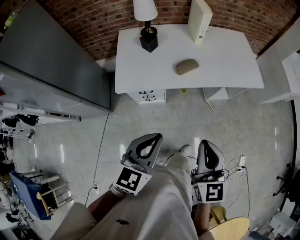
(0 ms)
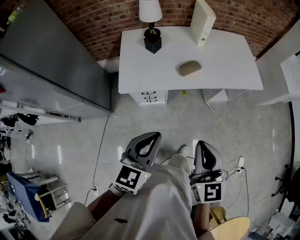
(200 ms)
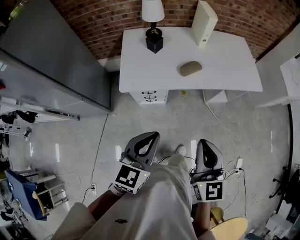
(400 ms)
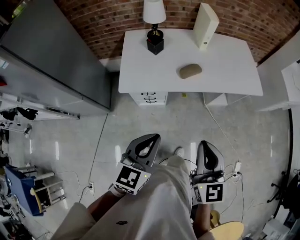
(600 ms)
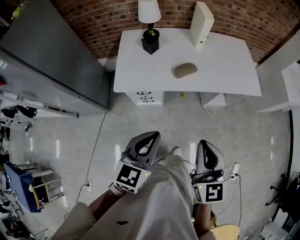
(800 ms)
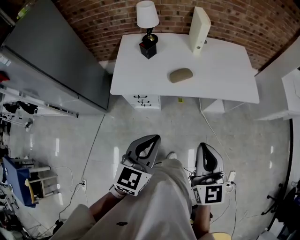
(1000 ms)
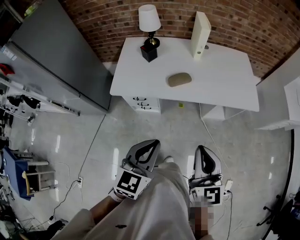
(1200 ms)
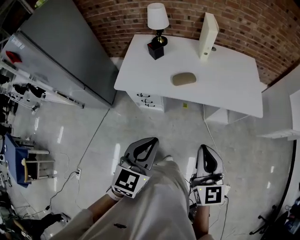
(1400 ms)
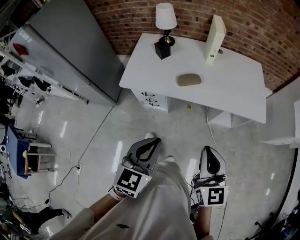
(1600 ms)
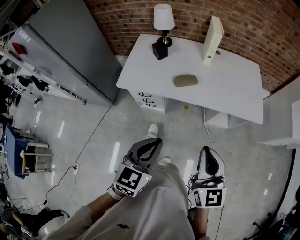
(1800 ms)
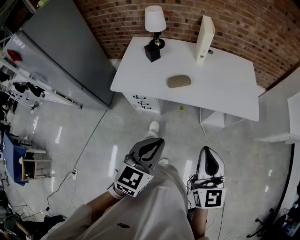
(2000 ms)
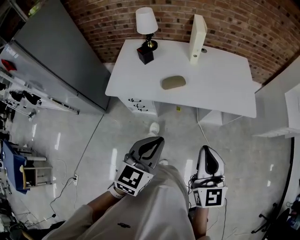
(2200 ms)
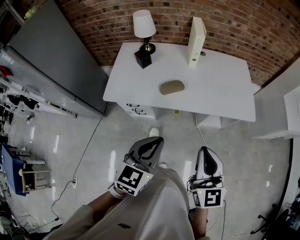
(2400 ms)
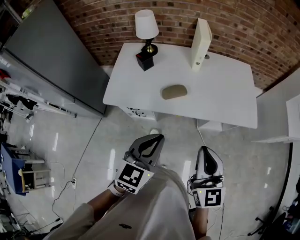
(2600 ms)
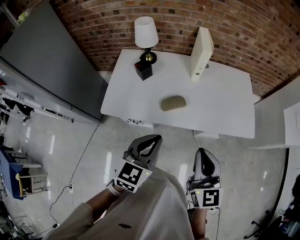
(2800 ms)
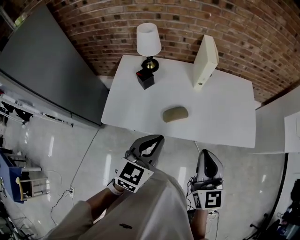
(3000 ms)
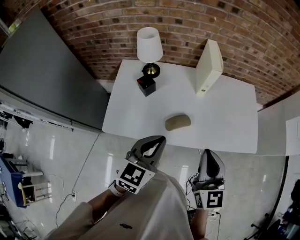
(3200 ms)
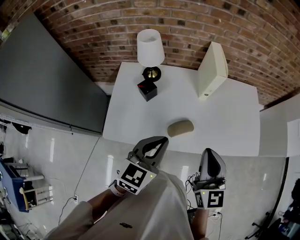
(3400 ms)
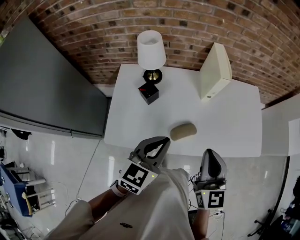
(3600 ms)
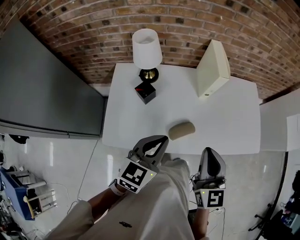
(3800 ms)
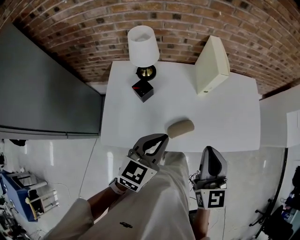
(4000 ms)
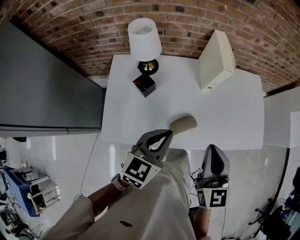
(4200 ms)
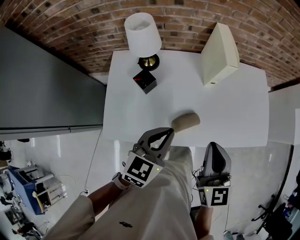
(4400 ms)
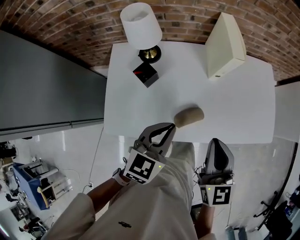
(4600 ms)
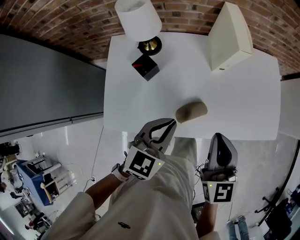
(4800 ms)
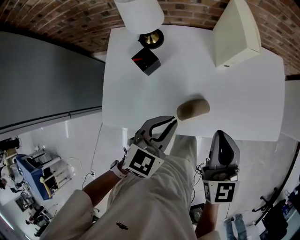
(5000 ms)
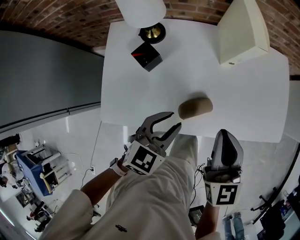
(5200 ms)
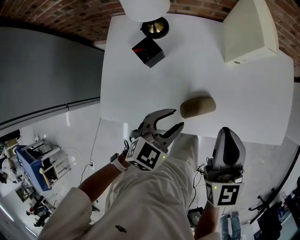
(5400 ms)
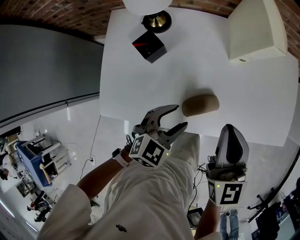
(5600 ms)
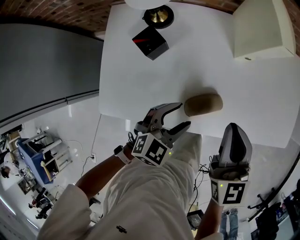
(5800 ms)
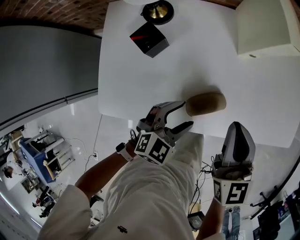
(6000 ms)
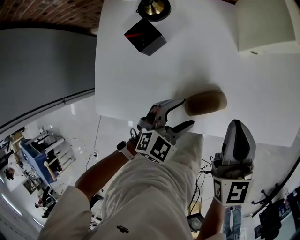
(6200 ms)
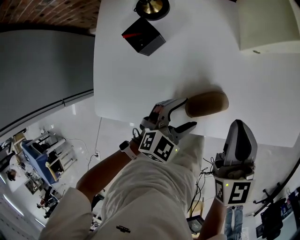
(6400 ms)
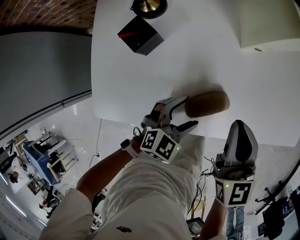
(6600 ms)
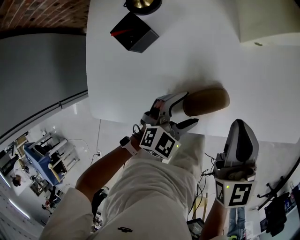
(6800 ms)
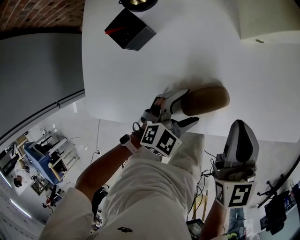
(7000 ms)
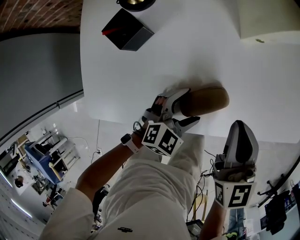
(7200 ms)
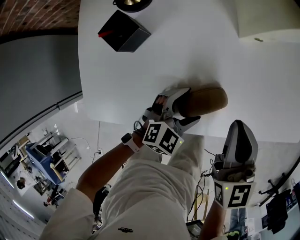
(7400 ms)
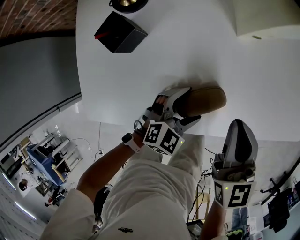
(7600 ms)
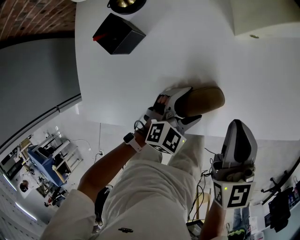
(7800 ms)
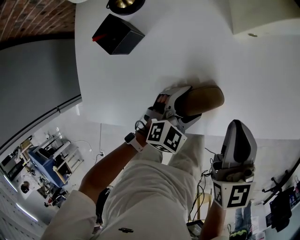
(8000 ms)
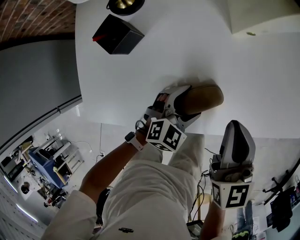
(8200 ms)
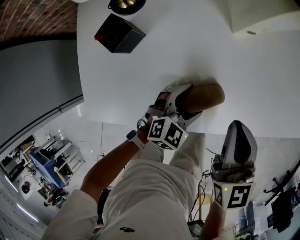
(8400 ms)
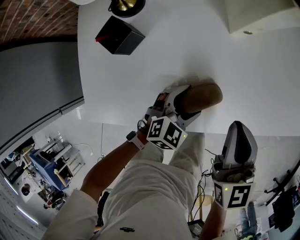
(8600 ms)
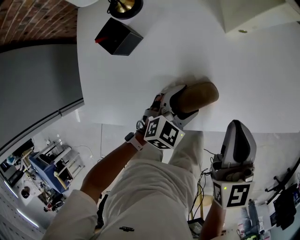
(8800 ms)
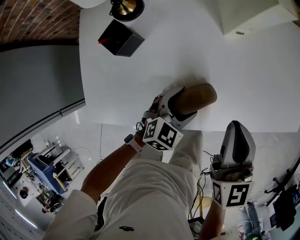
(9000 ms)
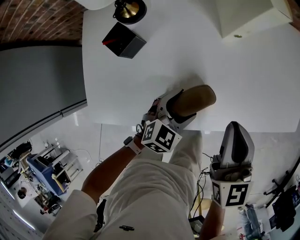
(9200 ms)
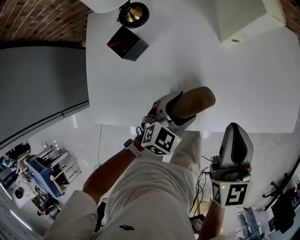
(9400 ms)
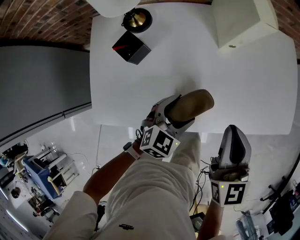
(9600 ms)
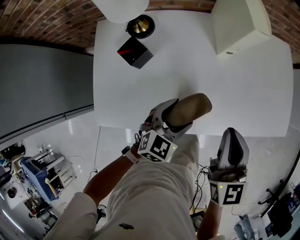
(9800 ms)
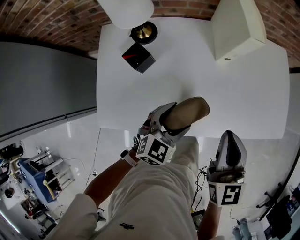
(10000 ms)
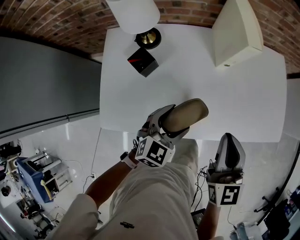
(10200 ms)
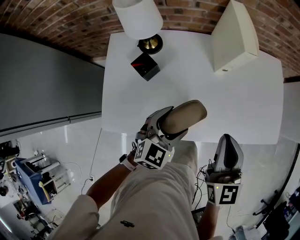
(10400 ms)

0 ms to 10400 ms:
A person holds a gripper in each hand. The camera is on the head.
0 ms to 1400 ms: The grippers both shift to the right by about 15 cm.
1400 ms to 3000 ms: Both grippers travel together forward, about 25 cm.
3000 ms to 4400 ms: The grippers both shift forward and to the left by roughly 15 cm.
4400 ms to 6000 ms: The right gripper goes some 15 cm downward and forward. Meanwhile the left gripper travels downward by approximately 20 cm, changes its angle by approximately 30 degrees, and opens up.
6000 ms to 7400 ms: Both grippers move downward, roughly 10 cm.
7400 ms to 9000 ms: There are only small adjustments of the grippers.
9000 ms to 10400 ms: The left gripper goes approximately 20 cm upward, while the right gripper moves upward, roughly 10 cm.

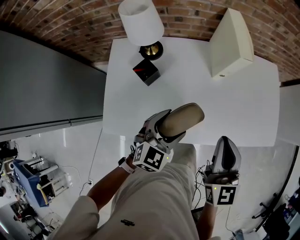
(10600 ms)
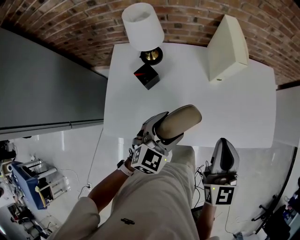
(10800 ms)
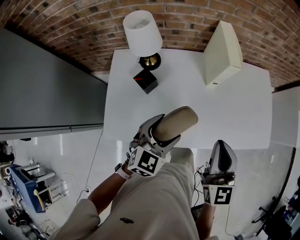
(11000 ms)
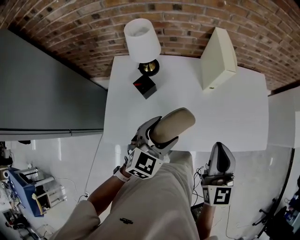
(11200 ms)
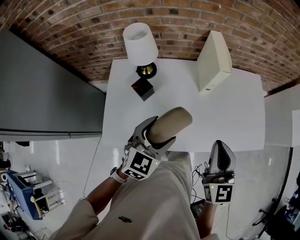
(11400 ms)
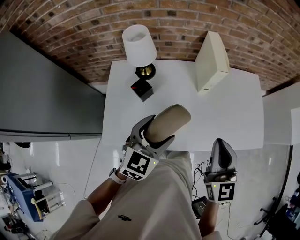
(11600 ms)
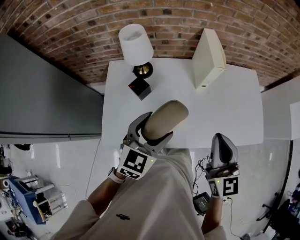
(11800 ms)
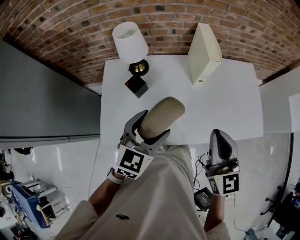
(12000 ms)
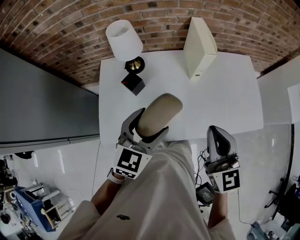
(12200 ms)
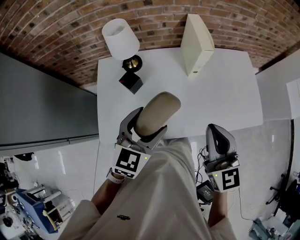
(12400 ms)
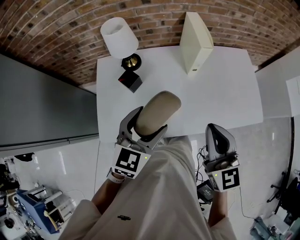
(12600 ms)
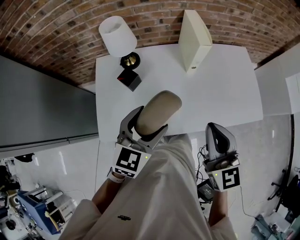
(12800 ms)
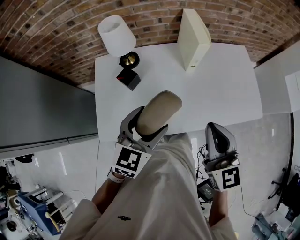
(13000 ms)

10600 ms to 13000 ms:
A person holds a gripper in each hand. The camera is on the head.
10600 ms to 11800 ms: The right gripper is displaced upward by some 5 cm. The left gripper shifts approximately 15 cm upward.
11800 ms to 13000 ms: There are only small adjustments of the grippers.

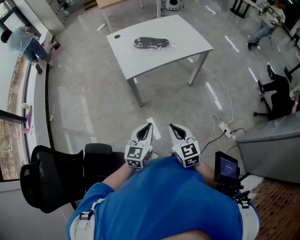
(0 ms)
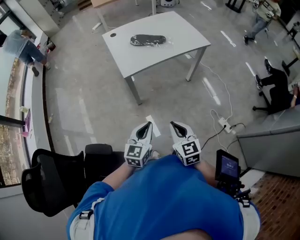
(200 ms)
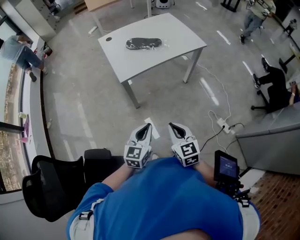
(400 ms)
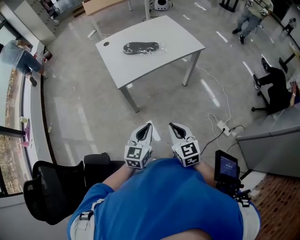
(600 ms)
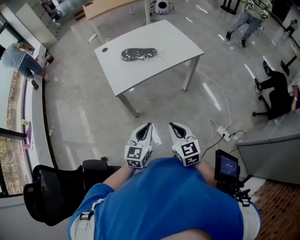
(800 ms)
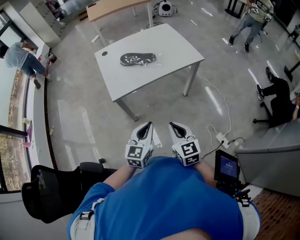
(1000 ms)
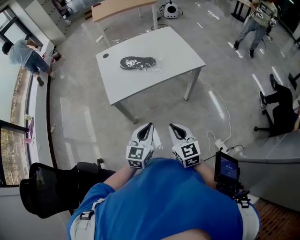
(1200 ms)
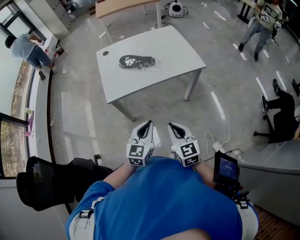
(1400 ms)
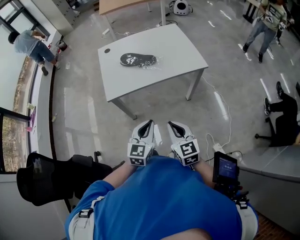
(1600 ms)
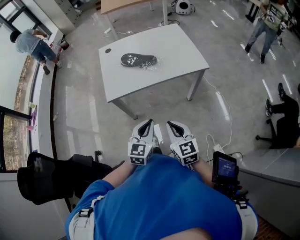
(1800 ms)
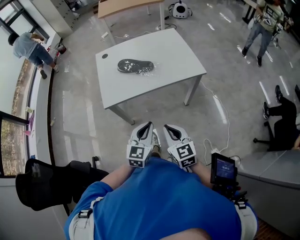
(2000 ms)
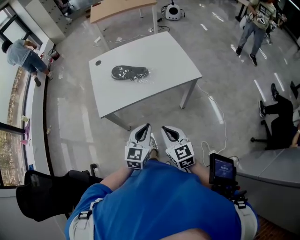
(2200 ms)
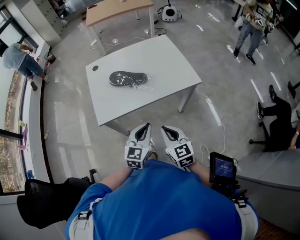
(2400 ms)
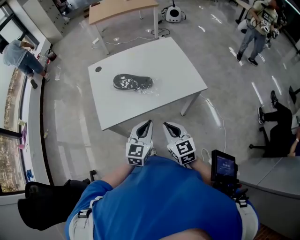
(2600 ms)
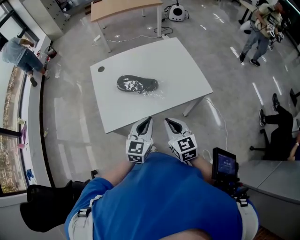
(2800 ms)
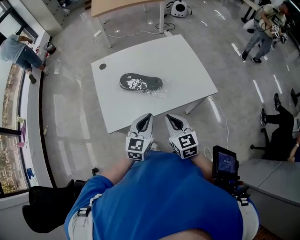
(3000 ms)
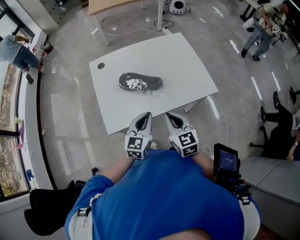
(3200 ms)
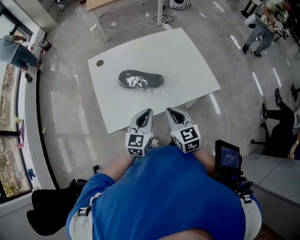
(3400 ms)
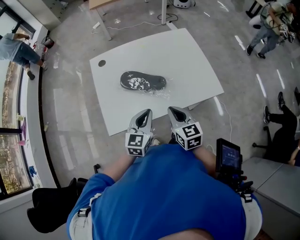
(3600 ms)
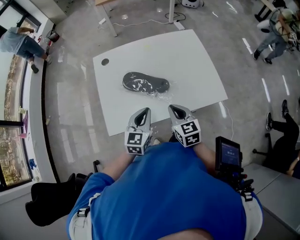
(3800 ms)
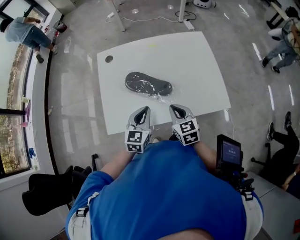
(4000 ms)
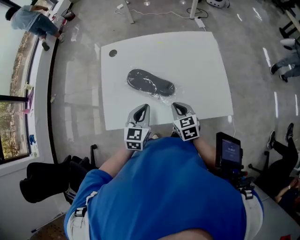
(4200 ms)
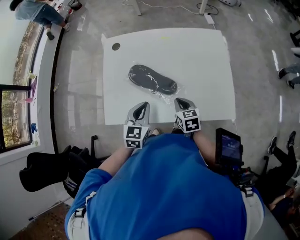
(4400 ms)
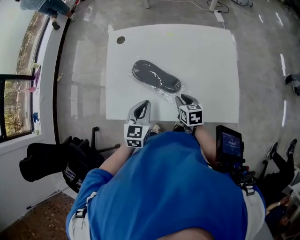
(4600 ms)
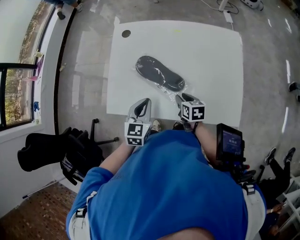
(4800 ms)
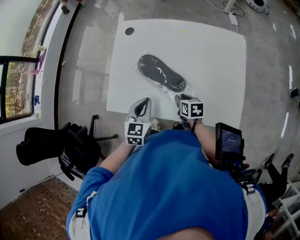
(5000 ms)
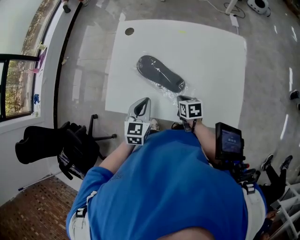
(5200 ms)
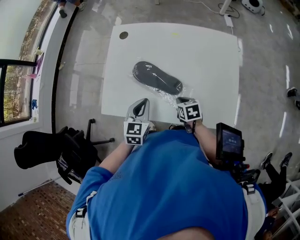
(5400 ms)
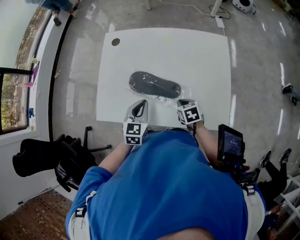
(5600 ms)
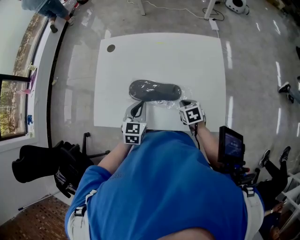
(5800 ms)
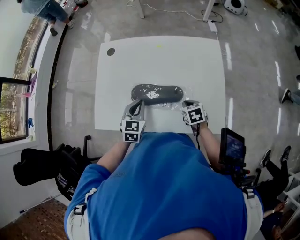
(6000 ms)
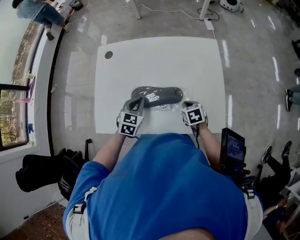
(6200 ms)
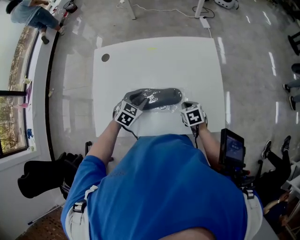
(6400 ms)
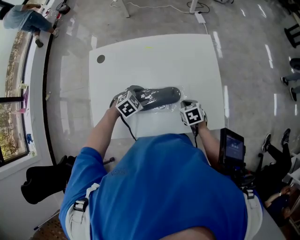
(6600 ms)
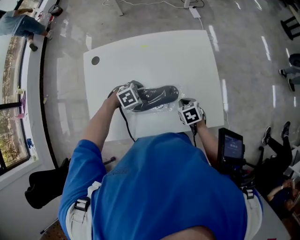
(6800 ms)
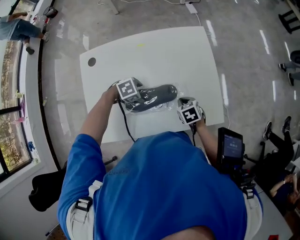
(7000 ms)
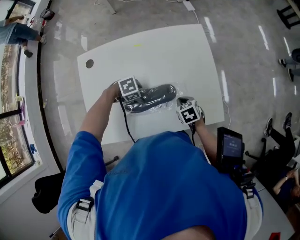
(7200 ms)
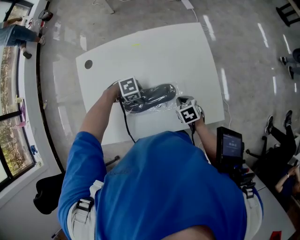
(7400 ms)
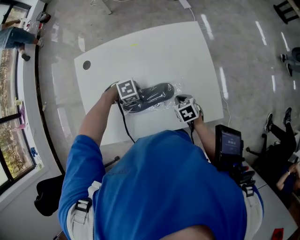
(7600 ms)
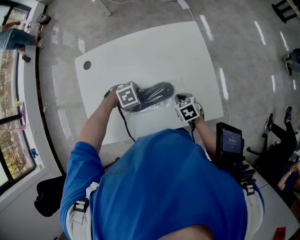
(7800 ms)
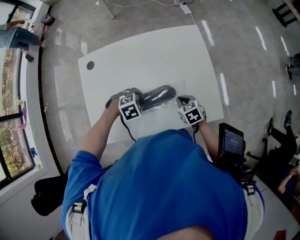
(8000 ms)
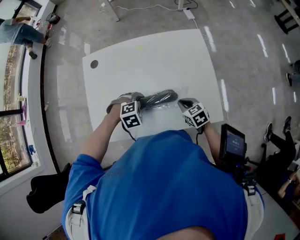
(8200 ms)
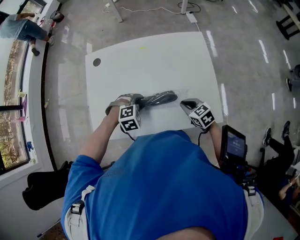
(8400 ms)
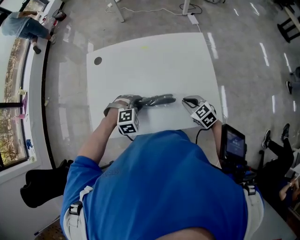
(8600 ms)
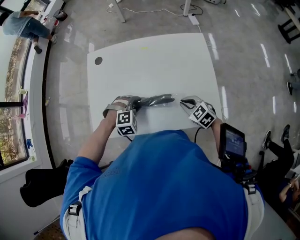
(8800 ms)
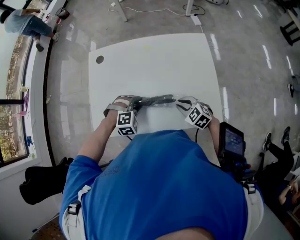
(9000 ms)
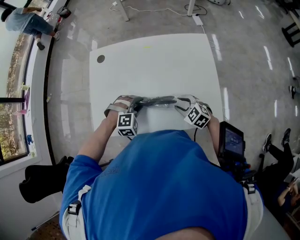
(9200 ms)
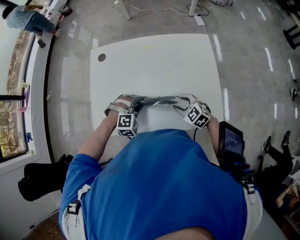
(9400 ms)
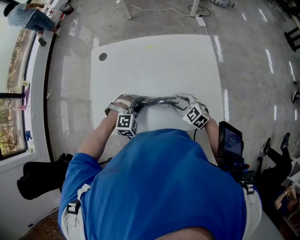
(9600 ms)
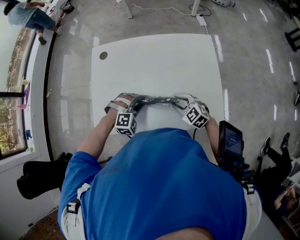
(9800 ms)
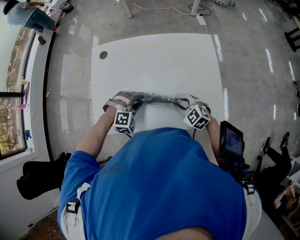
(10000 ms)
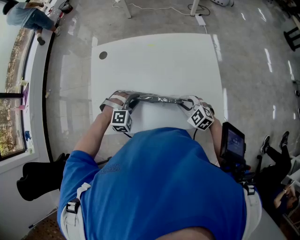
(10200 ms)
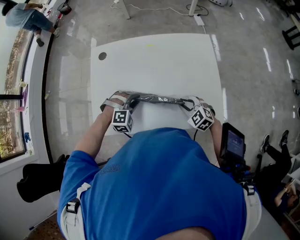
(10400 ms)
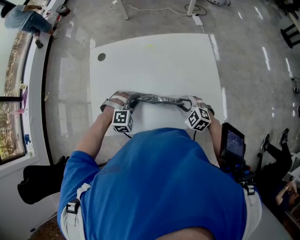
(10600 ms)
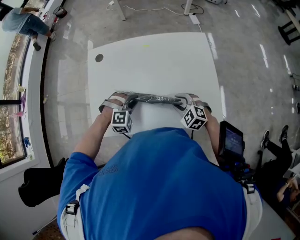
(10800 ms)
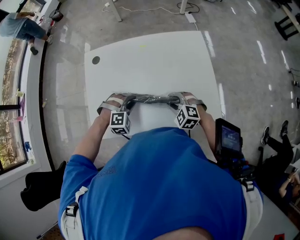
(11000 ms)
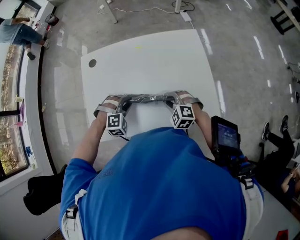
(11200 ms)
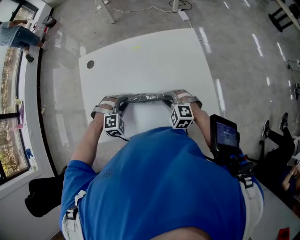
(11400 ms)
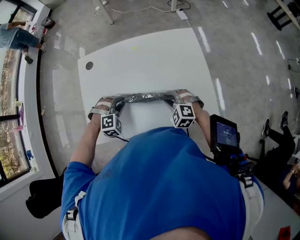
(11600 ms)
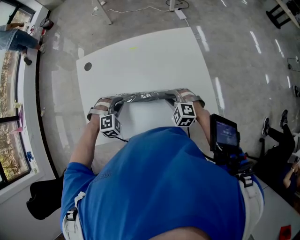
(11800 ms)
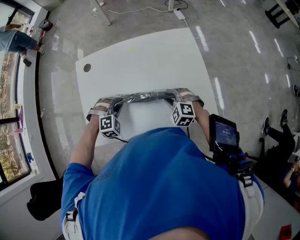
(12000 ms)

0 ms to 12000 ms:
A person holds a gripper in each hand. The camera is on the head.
0 ms to 1600 ms: Both grippers travel together to the right and forward, roughly 30 cm.
1600 ms to 3000 ms: The grippers both shift forward by approximately 25 cm.
3000 ms to 4400 ms: The left gripper shifts some 15 cm forward and downward, and swivels some 20 degrees. The right gripper shifts some 25 cm forward and downward, and swivels roughly 30 degrees.
4400 ms to 6000 ms: The right gripper heads to the right and downward, covering roughly 15 cm, and opens, then closes once more, while the left gripper travels downward and forward by some 10 cm.
6000 ms to 7600 ms: The left gripper heads downward, covering roughly 10 cm, tips its fingers downward by some 30 degrees, and opens its fingers.
7600 ms to 9000 ms: The right gripper turns by about 40 degrees. Meanwhile the left gripper ends up about 5 cm from where it was, and rotates roughly 50 degrees.
9000 ms to 10400 ms: The right gripper opens and closes again.
10400 ms to 12000 ms: There are only small adjustments of the grippers.
